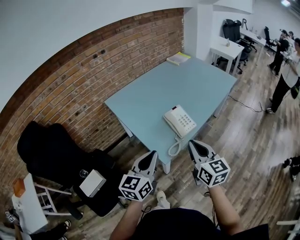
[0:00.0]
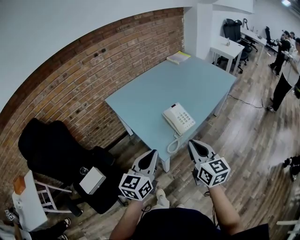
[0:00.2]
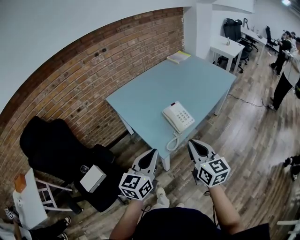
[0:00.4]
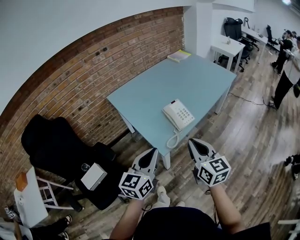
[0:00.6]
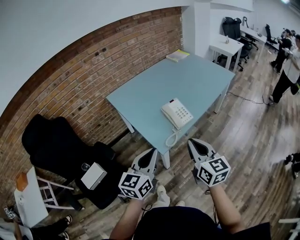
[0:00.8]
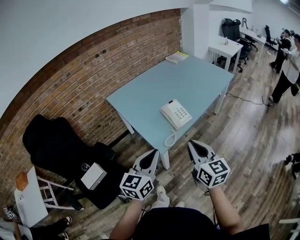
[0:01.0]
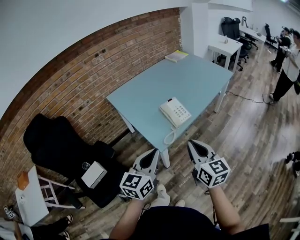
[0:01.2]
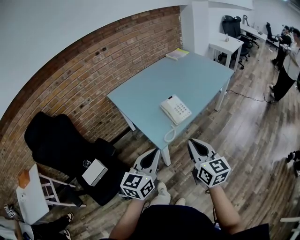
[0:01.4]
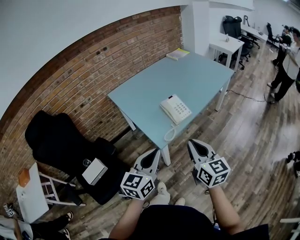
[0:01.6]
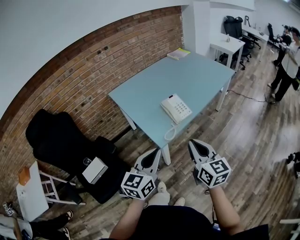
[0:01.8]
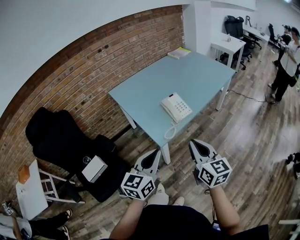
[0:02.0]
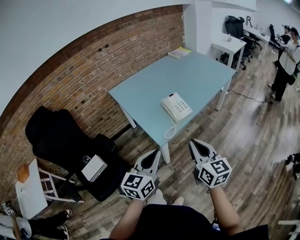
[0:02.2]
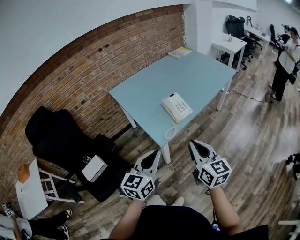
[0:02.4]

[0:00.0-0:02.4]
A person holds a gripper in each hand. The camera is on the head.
0:00.0 to 0:01.2: The left gripper travels backward and to the right by roughly 10 cm. Meanwhile the right gripper is displaced backward by about 10 cm.
0:01.2 to 0:02.4: The grippers move only a little.

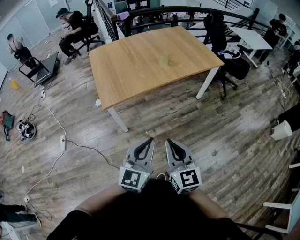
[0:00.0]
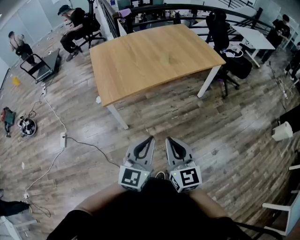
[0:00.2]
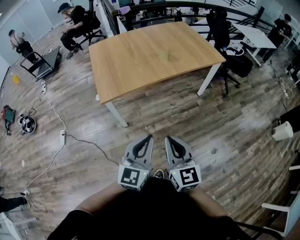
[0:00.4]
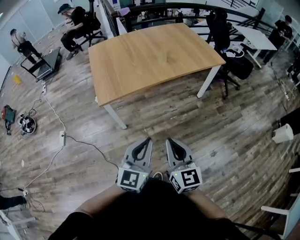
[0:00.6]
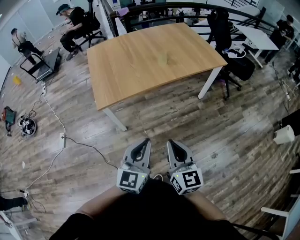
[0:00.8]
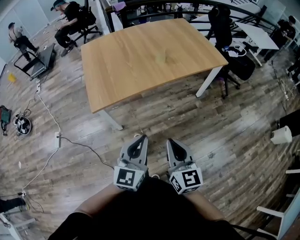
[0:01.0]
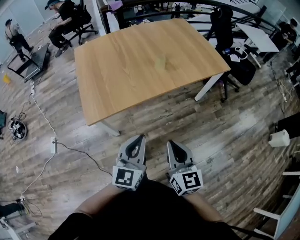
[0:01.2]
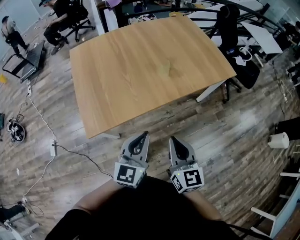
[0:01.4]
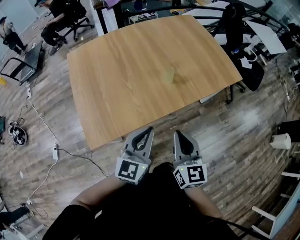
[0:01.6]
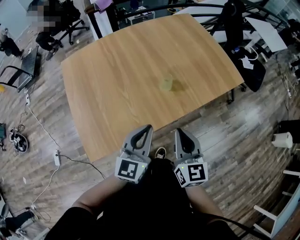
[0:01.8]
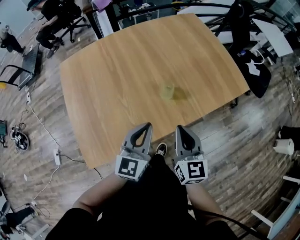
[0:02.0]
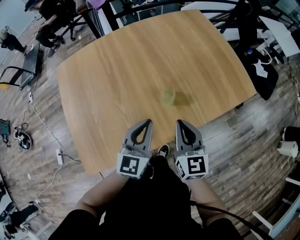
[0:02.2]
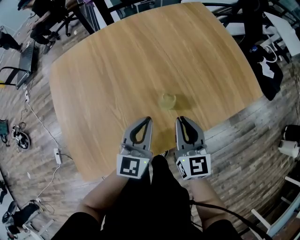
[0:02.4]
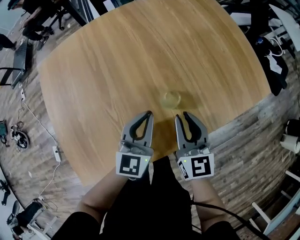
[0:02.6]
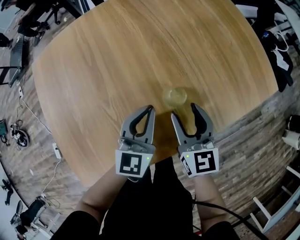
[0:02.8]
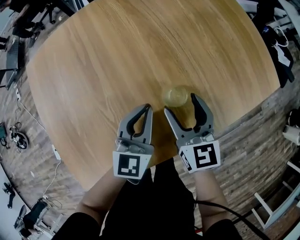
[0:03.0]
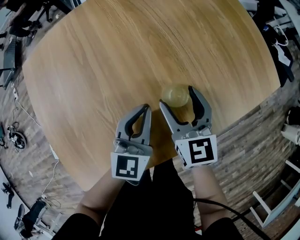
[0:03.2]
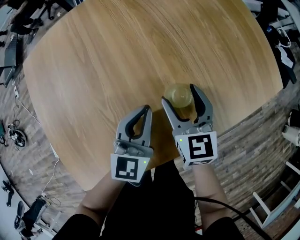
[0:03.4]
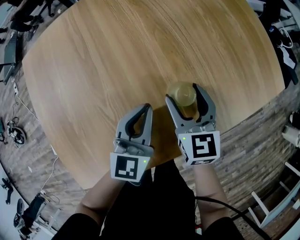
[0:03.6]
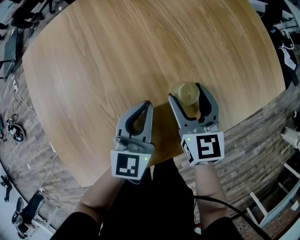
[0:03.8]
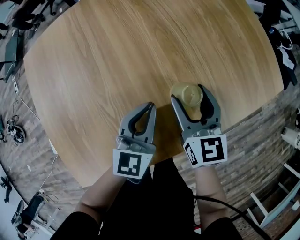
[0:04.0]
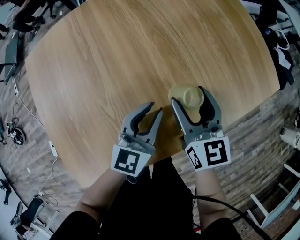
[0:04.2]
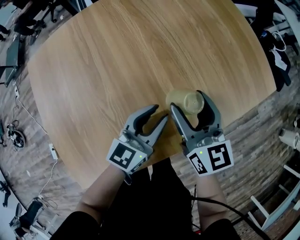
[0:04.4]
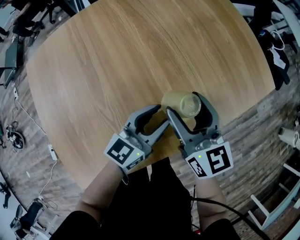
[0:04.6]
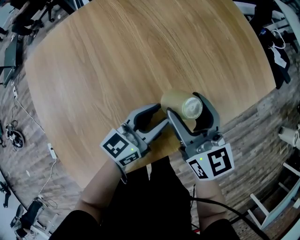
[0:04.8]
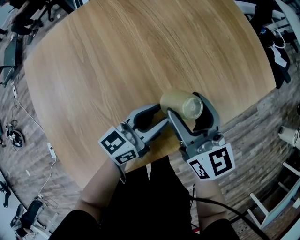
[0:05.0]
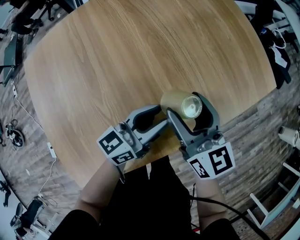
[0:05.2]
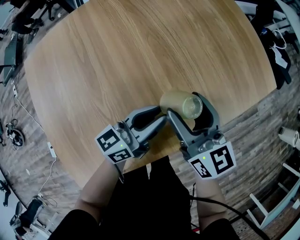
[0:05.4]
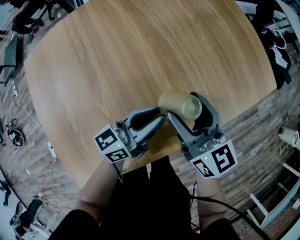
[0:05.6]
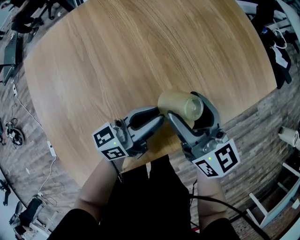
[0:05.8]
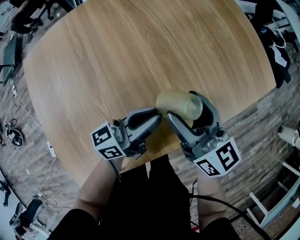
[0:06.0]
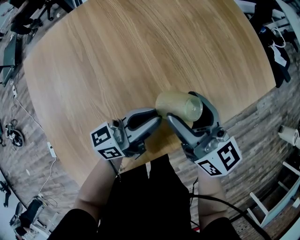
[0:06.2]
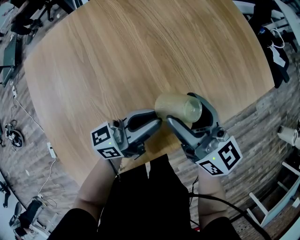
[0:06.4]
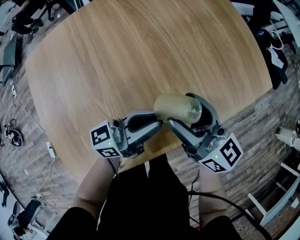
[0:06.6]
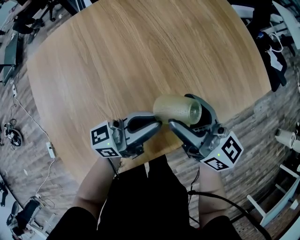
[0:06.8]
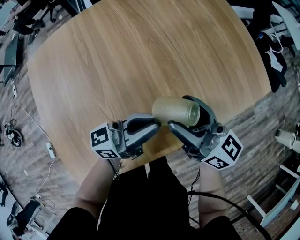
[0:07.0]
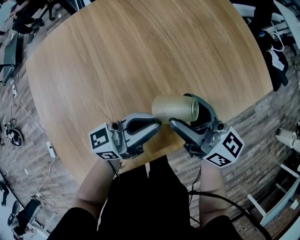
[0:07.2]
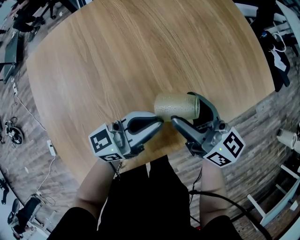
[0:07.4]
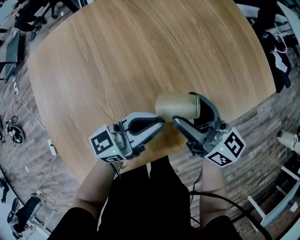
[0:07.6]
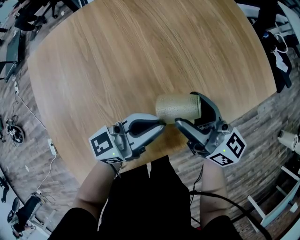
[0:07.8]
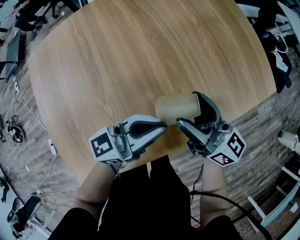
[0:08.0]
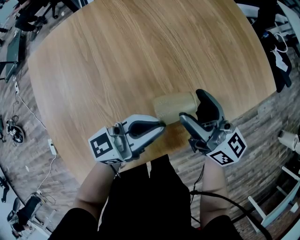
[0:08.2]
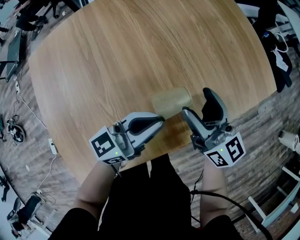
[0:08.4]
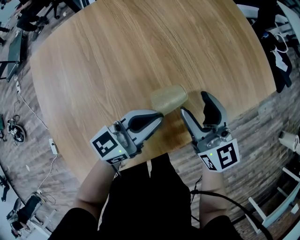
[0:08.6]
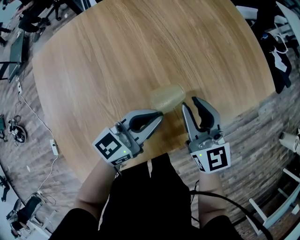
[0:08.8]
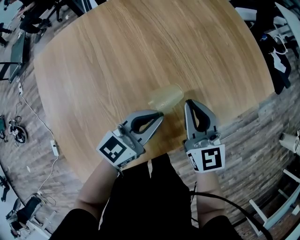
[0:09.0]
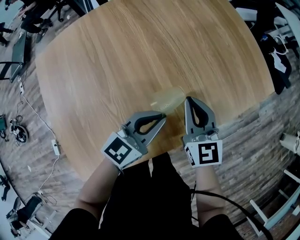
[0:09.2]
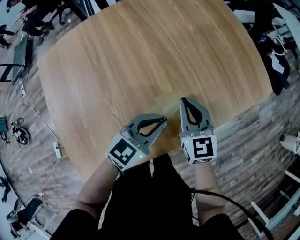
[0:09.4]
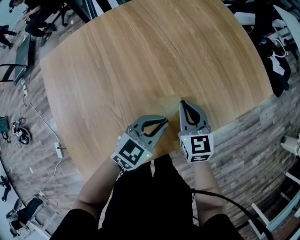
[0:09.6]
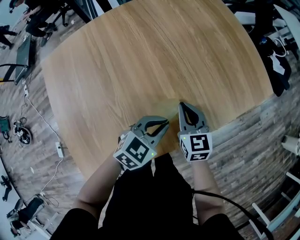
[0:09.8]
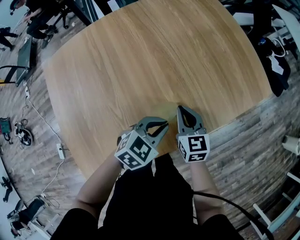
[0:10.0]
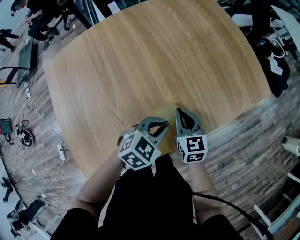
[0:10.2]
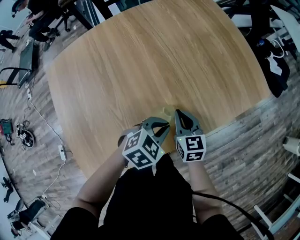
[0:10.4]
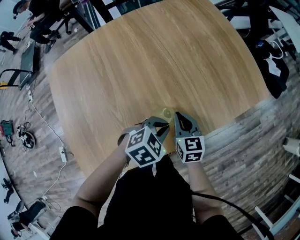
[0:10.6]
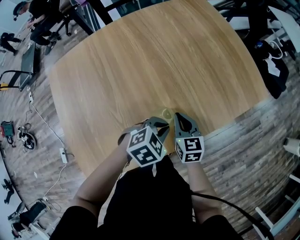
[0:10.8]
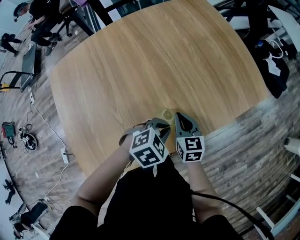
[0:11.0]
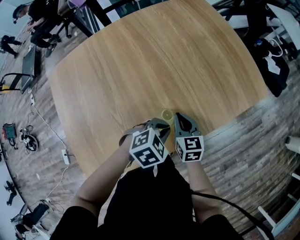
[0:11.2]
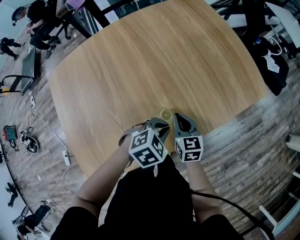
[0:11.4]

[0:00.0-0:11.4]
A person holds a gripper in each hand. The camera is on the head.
0:00.0 to 0:01.4: The grippers both shift forward by about 35 cm.
0:01.4 to 0:02.8: The two grippers travel together, forward, roughly 40 cm. The two grippers go some 20 cm downward. The right gripper opens.
0:04.2 to 0:05.6: The left gripper swivels roughly 40 degrees.
0:05.6 to 0:07.2: The right gripper turns by some 20 degrees. The left gripper heads upward, covering about 5 cm.
0:07.2 to 0:08.6: The right gripper turns by approximately 30 degrees, while the left gripper swivels roughly 20 degrees.
0:08.6 to 0:10.0: The right gripper shifts roughly 10 cm downward, turns by about 20 degrees, and closes. Meanwhile the left gripper moves roughly 5 cm, and tilts its fingers approximately 40 degrees downward.

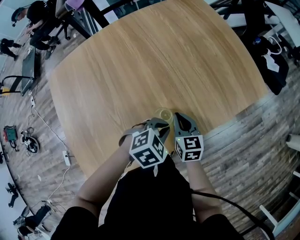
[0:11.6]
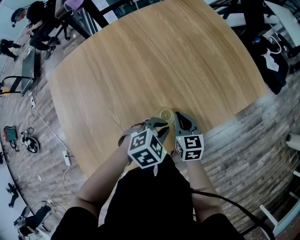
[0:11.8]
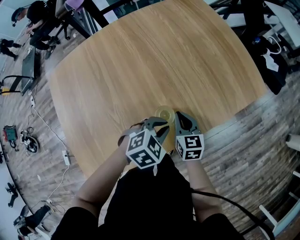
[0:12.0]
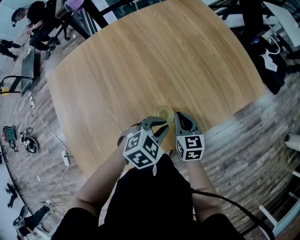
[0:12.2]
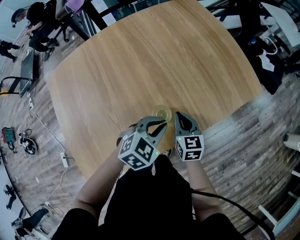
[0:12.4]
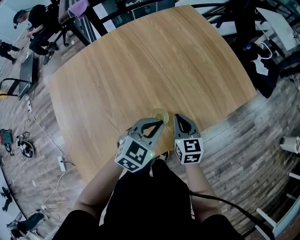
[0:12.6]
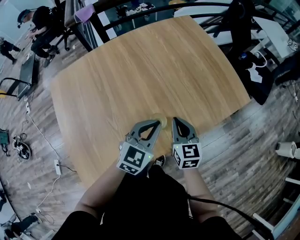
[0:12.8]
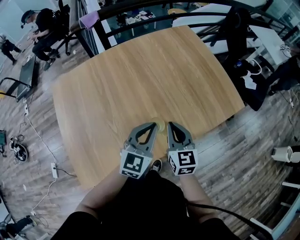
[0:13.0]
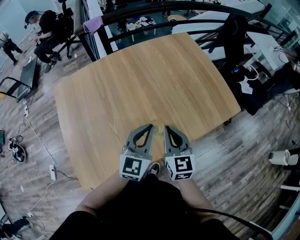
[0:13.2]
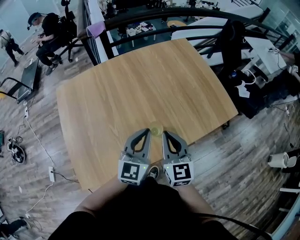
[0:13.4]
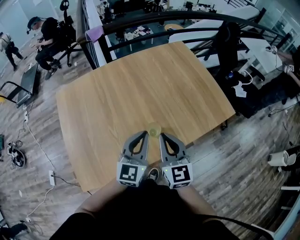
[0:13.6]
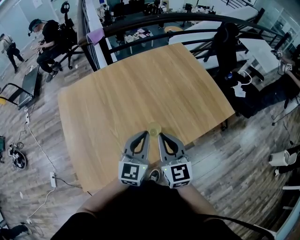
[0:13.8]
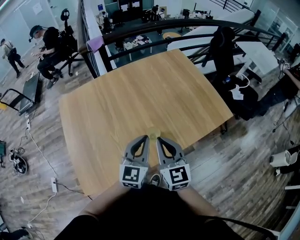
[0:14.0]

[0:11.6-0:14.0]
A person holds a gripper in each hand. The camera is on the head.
0:11.6 to 0:12.8: Both grippers travel together upward, approximately 10 cm. The left gripper tilts its fingers some 40 degrees upward.
0:12.8 to 0:14.0: The left gripper goes some 10 cm upward and backward, and swivels about 30 degrees. The right gripper travels upward and backward by some 20 cm.

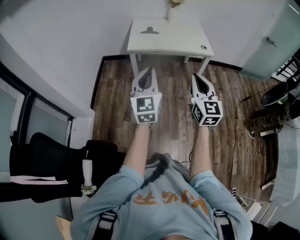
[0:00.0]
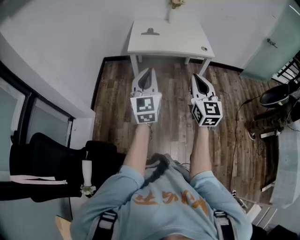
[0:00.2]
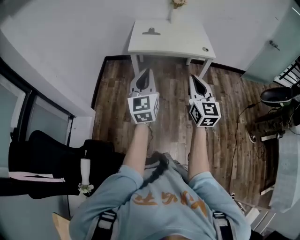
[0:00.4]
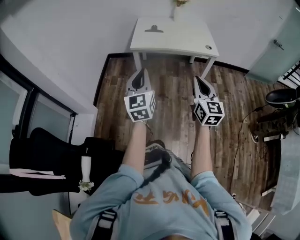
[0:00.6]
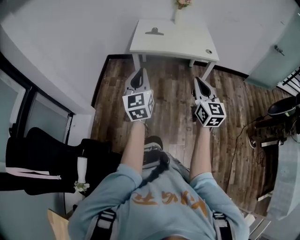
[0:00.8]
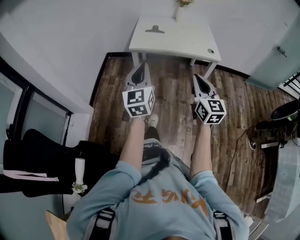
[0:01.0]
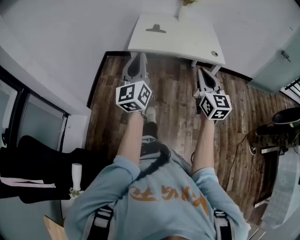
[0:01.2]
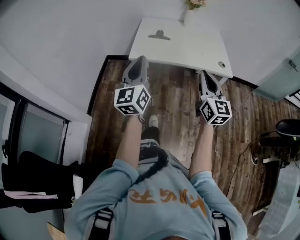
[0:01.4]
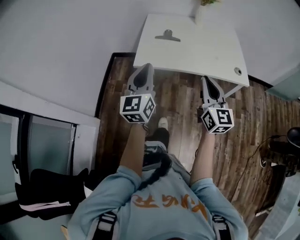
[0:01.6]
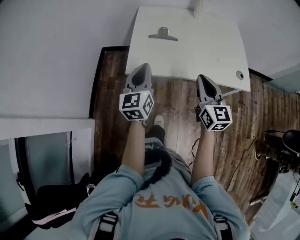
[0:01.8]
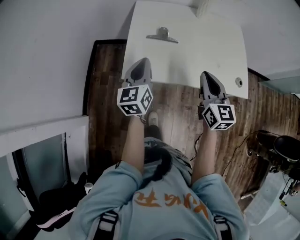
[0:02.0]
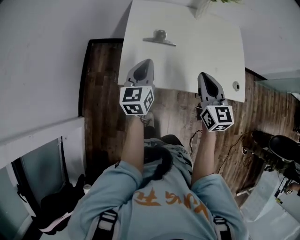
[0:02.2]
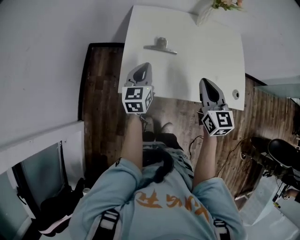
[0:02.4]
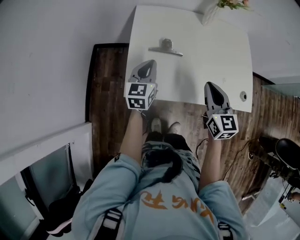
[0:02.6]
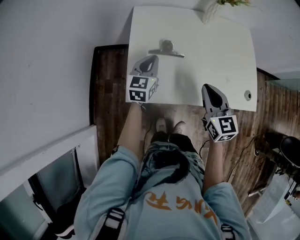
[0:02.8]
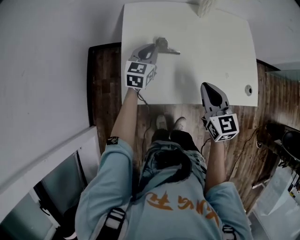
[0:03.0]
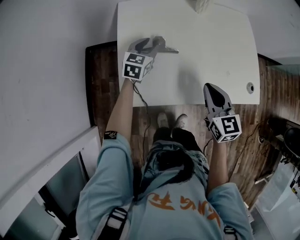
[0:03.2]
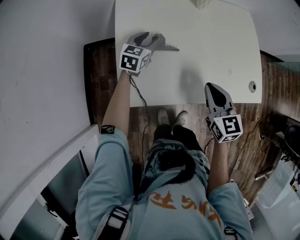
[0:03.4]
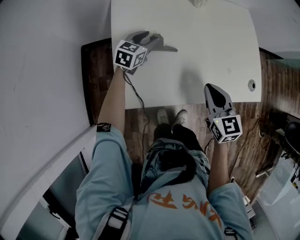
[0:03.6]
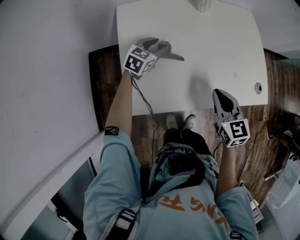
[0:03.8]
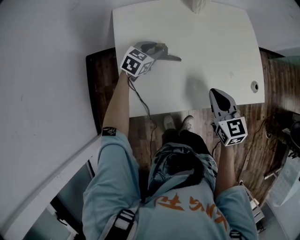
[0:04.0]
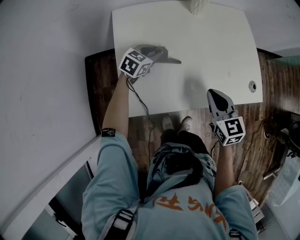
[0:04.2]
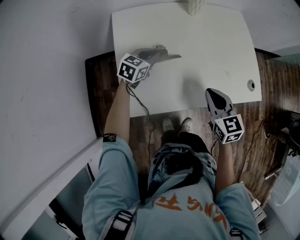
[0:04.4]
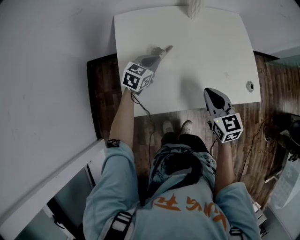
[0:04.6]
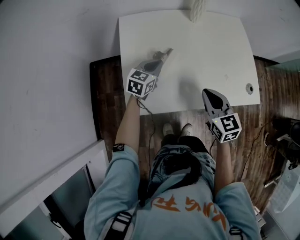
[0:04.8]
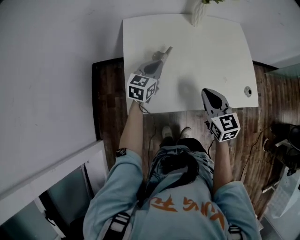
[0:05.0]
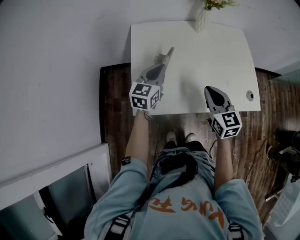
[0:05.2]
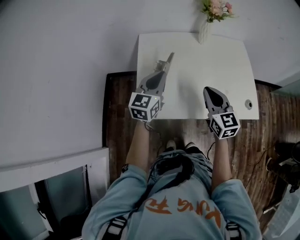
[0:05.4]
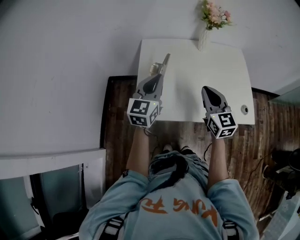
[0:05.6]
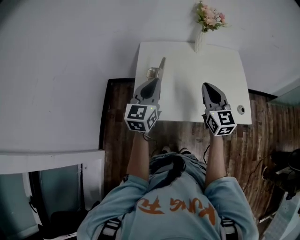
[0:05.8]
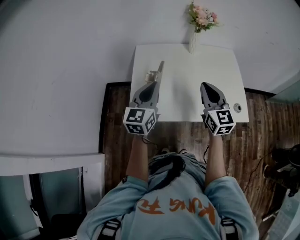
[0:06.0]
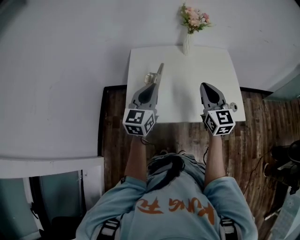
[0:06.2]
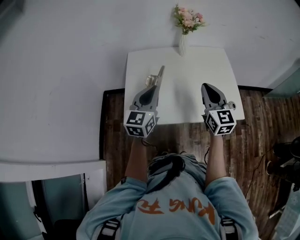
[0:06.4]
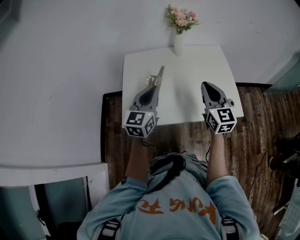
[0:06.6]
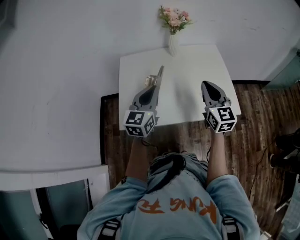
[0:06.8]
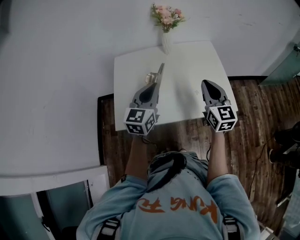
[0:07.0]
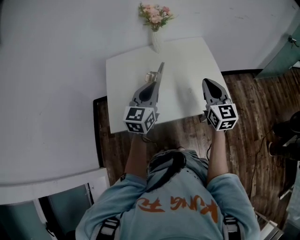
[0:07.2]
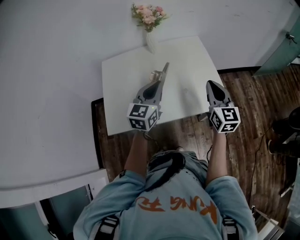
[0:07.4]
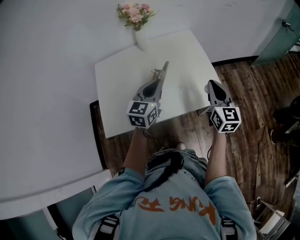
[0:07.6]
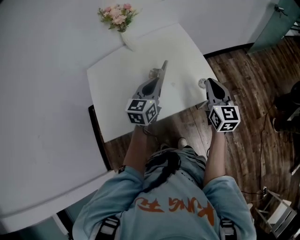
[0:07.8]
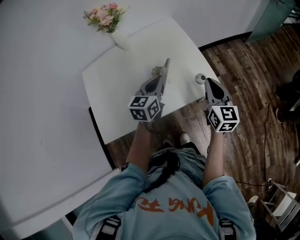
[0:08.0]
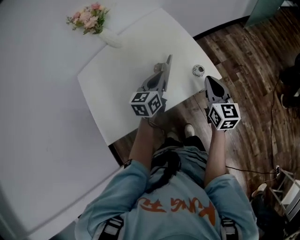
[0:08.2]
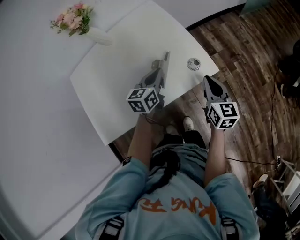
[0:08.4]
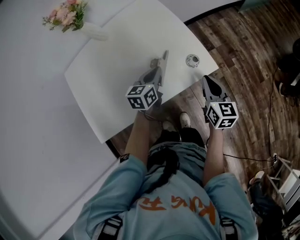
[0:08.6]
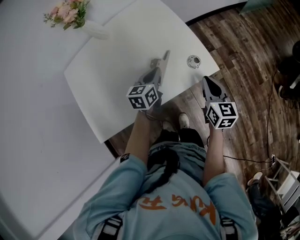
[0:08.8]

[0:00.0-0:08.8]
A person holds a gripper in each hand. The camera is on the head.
0:00.0 to 0:01.4: The grippers both shift forward by some 25 cm.
0:01.4 to 0:03.0: The two grippers travel together, forward, approximately 50 cm. The left gripper moves downward, about 25 cm, and tips its fingers downward by approximately 30 degrees. Meanwhile the right gripper swivels roughly 30 degrees.
0:03.0 to 0:04.4: The right gripper shifts by some 5 cm; the left gripper heads downward, covering about 5 cm, rotates about 30 degrees, and opens, then closes once more.
0:04.4 to 0:05.8: The left gripper is displaced upward and backward by some 30 cm, and turns by about 40 degrees. Meanwhile the right gripper shifts roughly 15 cm upward, and turns by about 20 degrees.
0:05.8 to 0:07.4: The two grippers go about 25 cm to the right.
0:07.4 to 0:08.8: The right gripper moves downward and to the right, approximately 25 cm, and swivels roughly 30 degrees. Meanwhile the left gripper moves downward, to the right and forward, some 30 cm, and rotates about 30 degrees.
